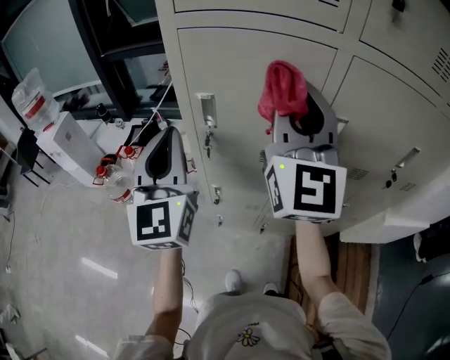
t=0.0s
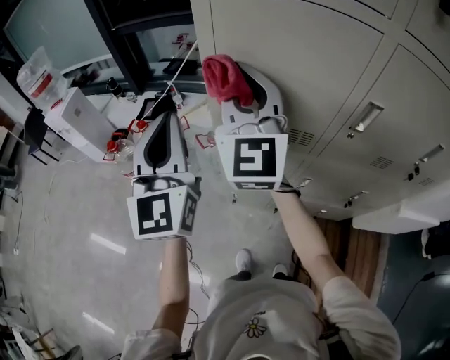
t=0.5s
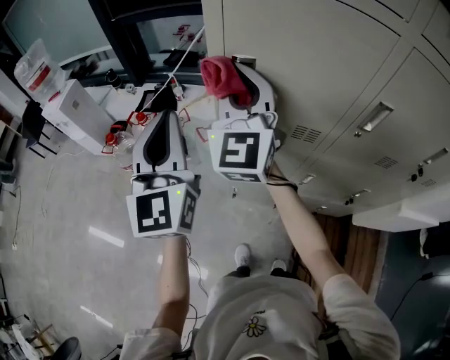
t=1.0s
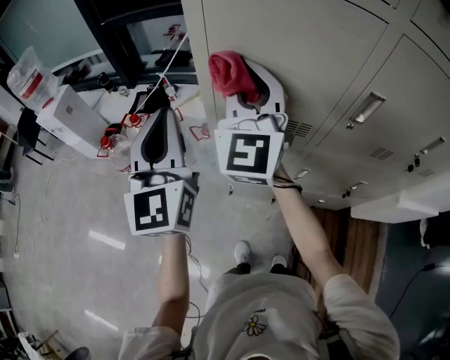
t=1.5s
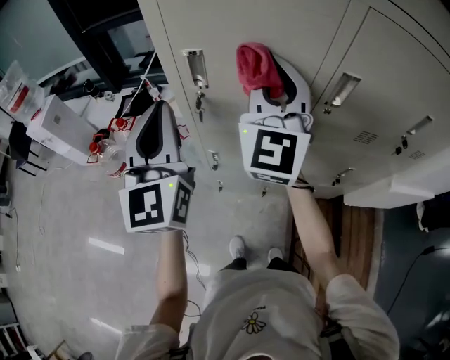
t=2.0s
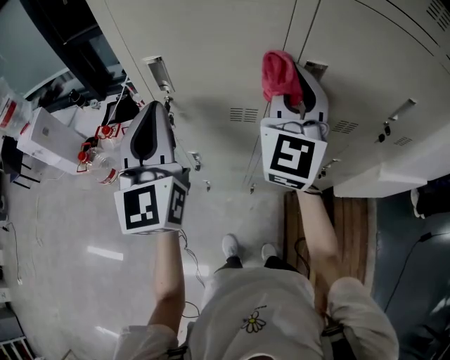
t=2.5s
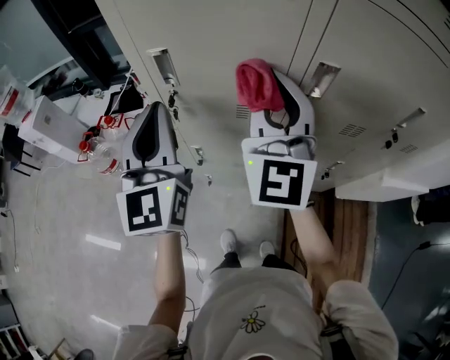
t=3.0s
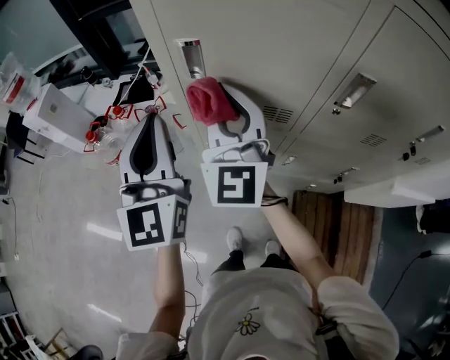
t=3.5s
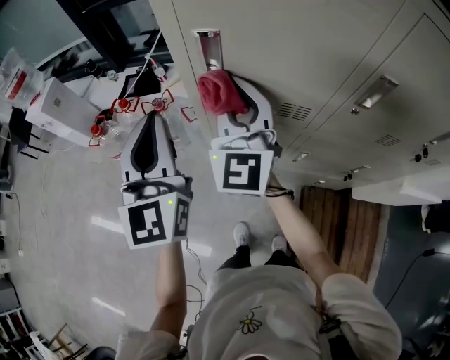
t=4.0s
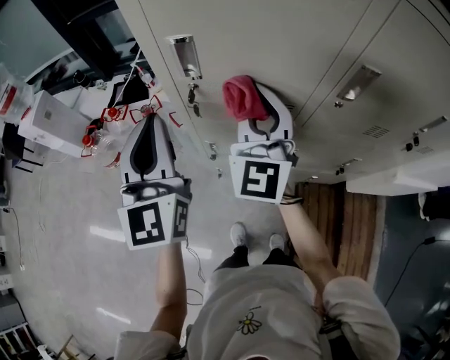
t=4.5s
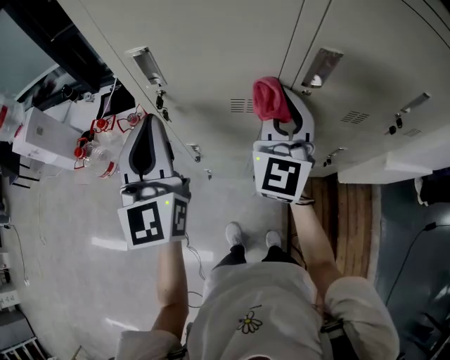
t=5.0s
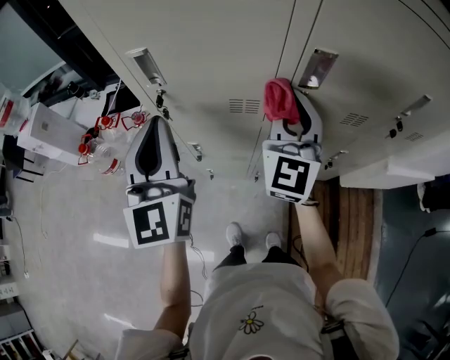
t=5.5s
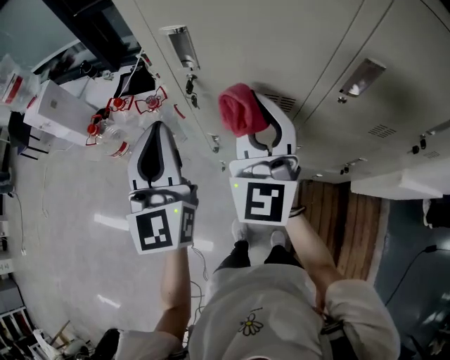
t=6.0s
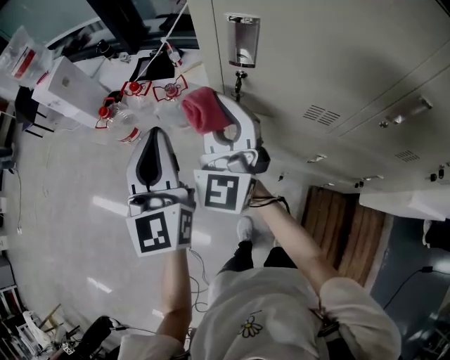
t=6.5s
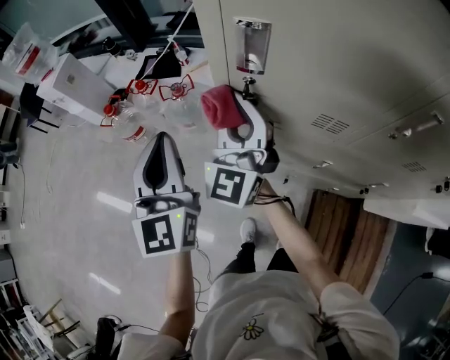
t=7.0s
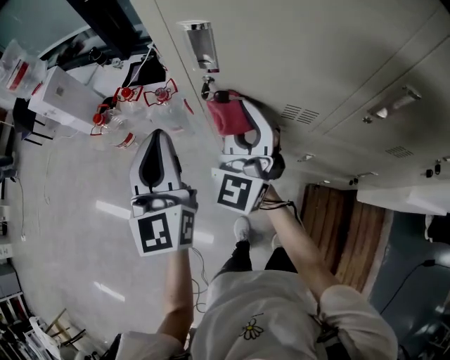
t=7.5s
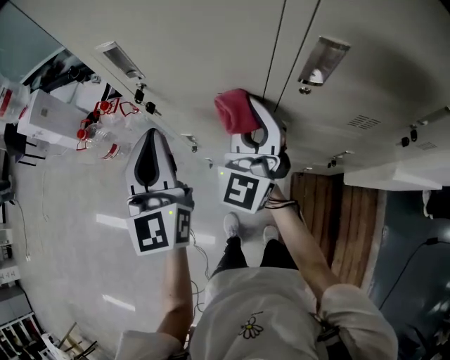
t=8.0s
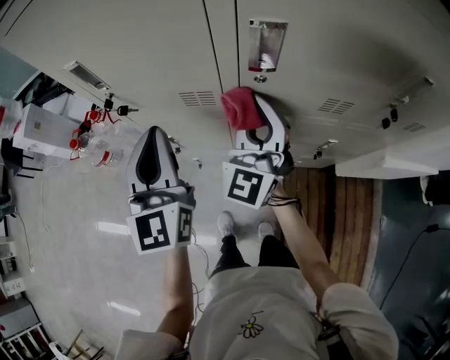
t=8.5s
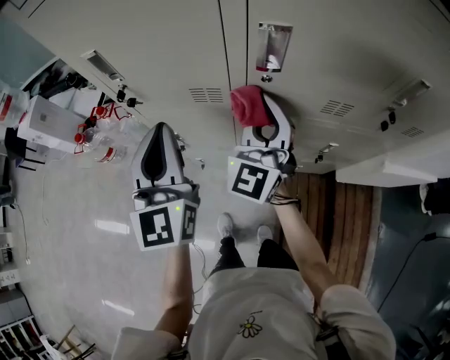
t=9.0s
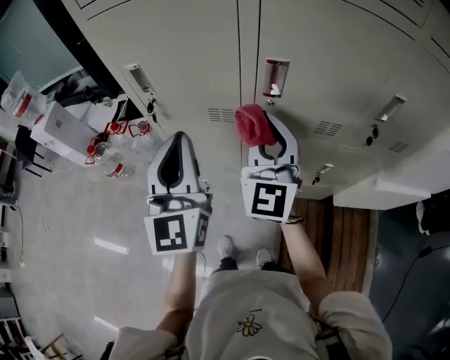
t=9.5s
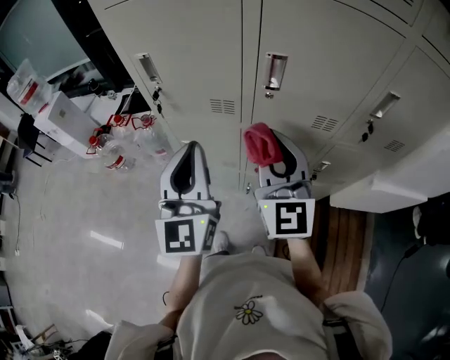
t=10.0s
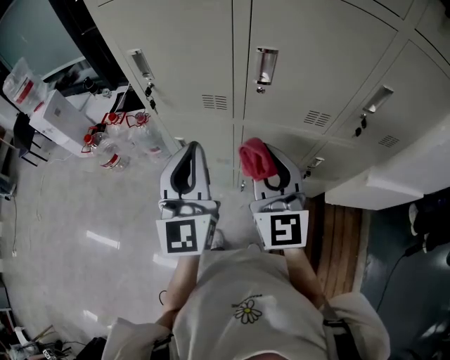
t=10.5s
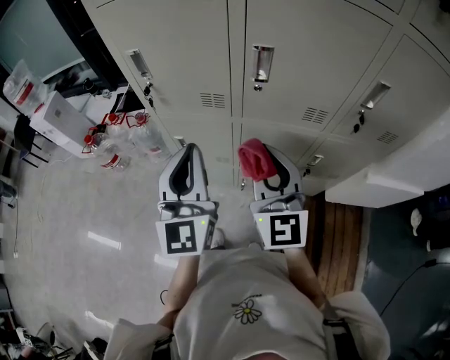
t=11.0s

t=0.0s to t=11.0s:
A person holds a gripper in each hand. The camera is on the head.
t=0.0s to t=2.0s: The right gripper shifts some 10 cm downward, and reaches about 15 cm to the left, then returns.
t=2.0s to t=3.5s: The right gripper moves downward and to the left, approximately 10 cm.
t=3.5s to t=5.5s: The right gripper moves to the right, some 20 cm, and swivels roughly 20 degrees; the left gripper goes about 5 cm to the right.
t=5.5s to t=7.5s: The left gripper heads to the left and downward, covering approximately 10 cm; the right gripper travels to the left by roughly 20 cm.
t=7.5s to t=9.0s: Both grippers travel together to the right, roughly 20 cm.
t=9.0s to t=11.0s: The grippers both shift backward by roughly 15 cm. The right gripper rotates about 30 degrees.

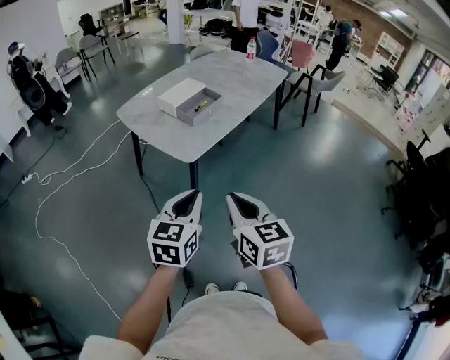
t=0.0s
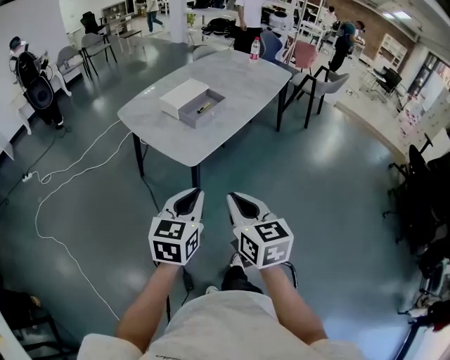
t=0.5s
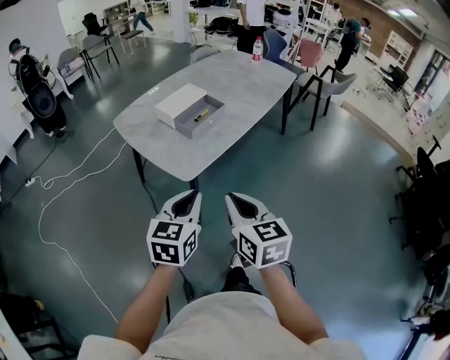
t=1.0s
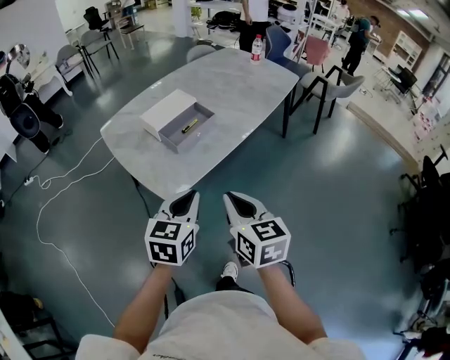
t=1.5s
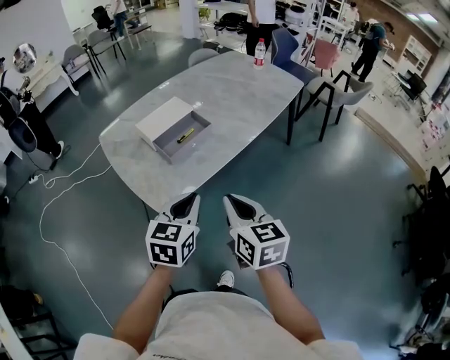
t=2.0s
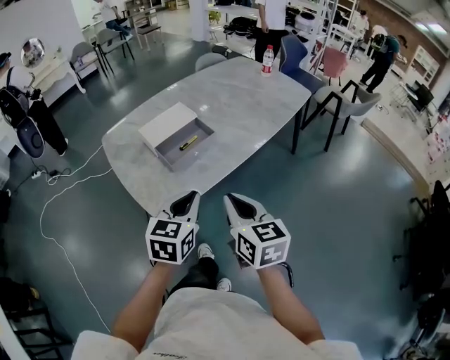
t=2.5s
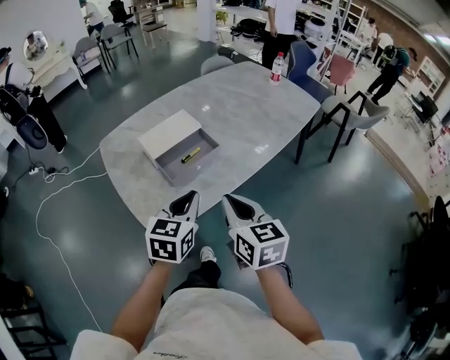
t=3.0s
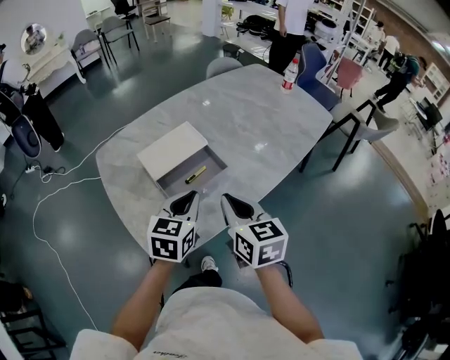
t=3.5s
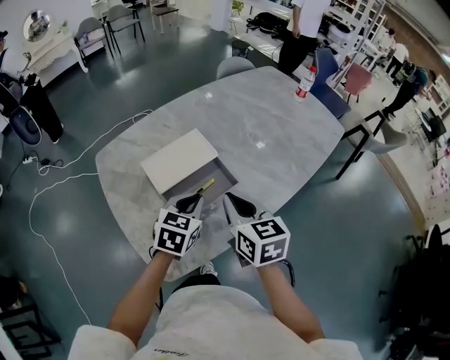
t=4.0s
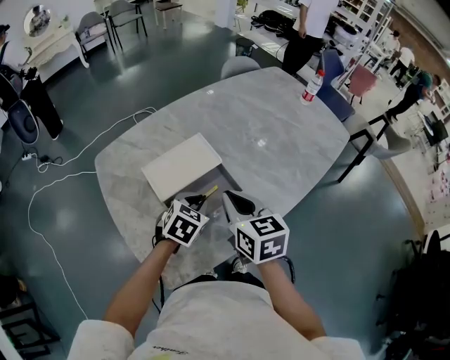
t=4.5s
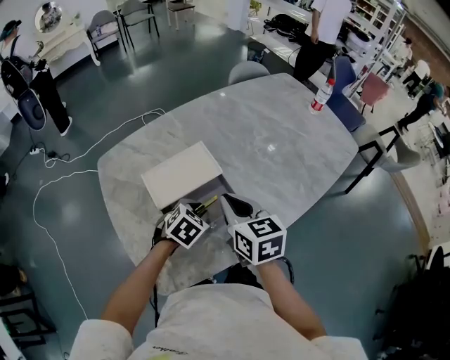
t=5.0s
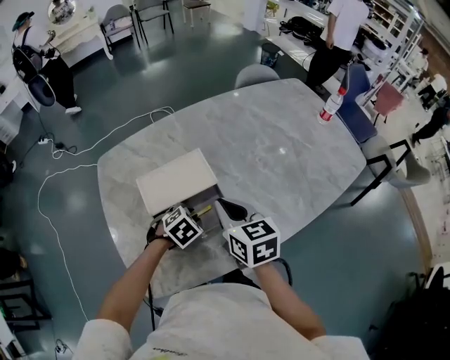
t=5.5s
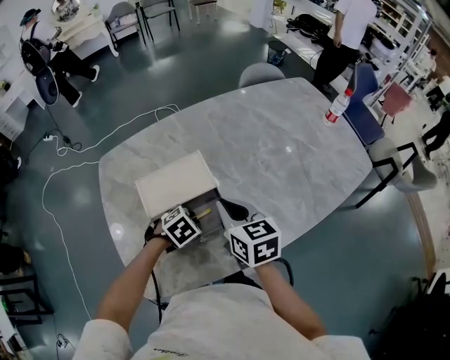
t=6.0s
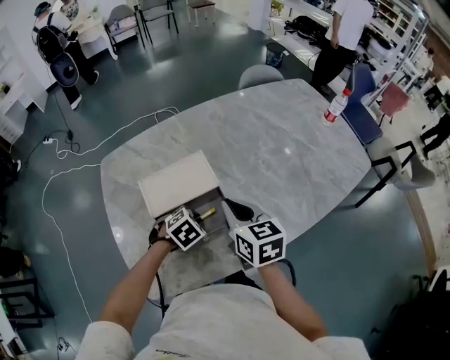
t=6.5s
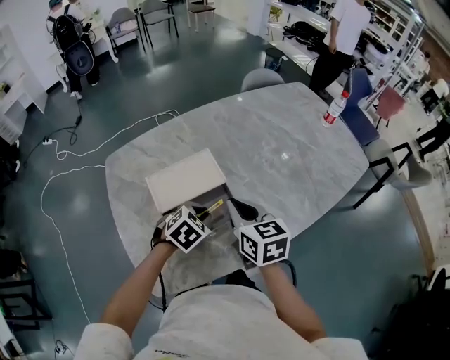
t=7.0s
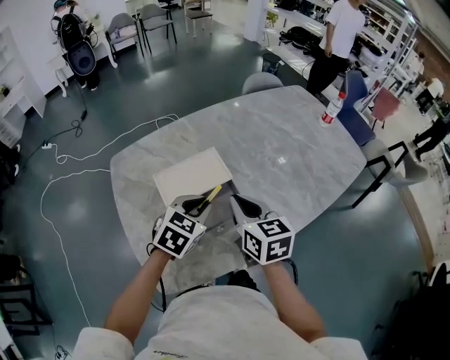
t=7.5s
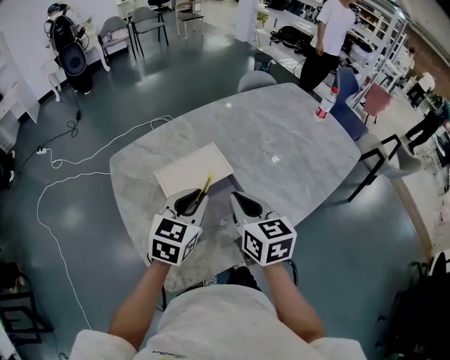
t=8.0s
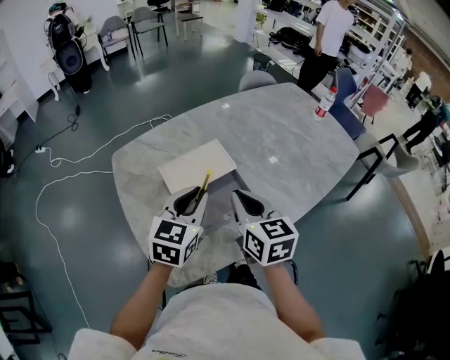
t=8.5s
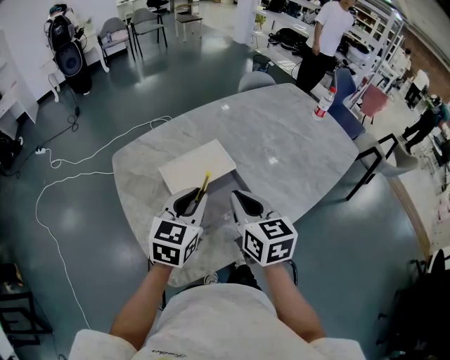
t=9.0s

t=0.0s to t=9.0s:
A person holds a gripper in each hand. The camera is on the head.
t=0.0s to t=2.0s: Both grippers travel together forward and to the right, roughly 30 cm.
t=2.0s to t=4.5s: The two grippers go about 35 cm forward. The left gripper swivels about 20 degrees.
t=4.5s to t=7.0s: The right gripper heads forward, covering roughly 5 cm; the left gripper reaches some 10 cm downward, then returns.
t=7.0s to t=9.0s: The left gripper is displaced upward and to the left by roughly 15 cm, and tilts its fingers about 40 degrees upward. The right gripper moves backward, about 5 cm.

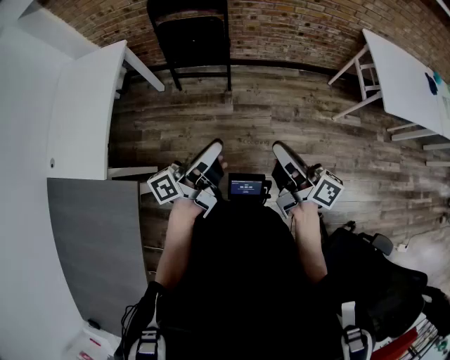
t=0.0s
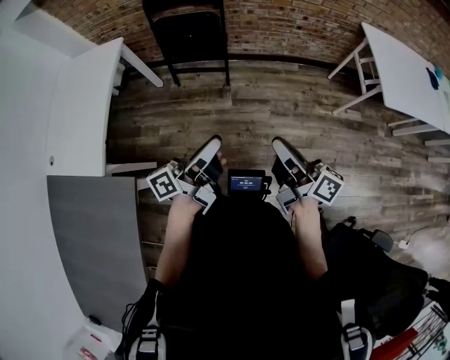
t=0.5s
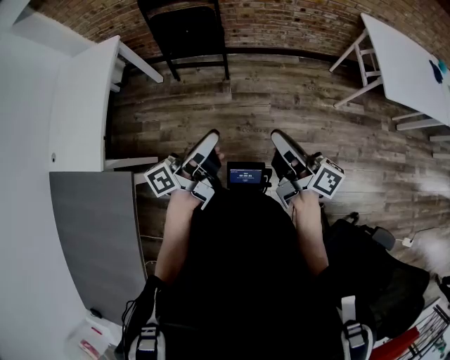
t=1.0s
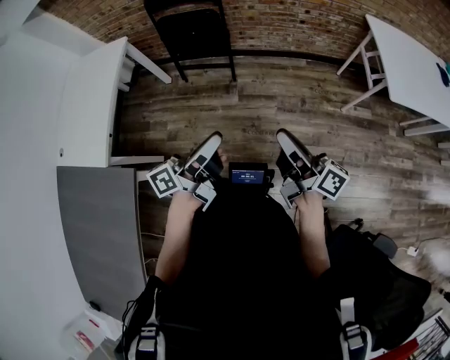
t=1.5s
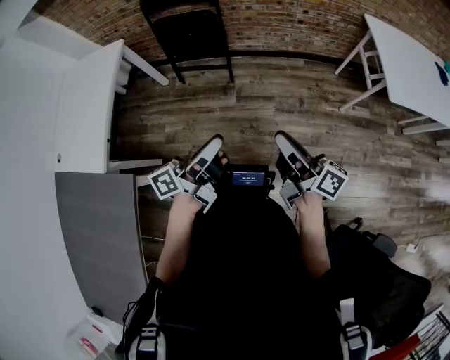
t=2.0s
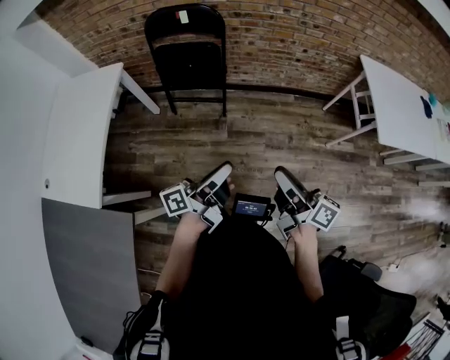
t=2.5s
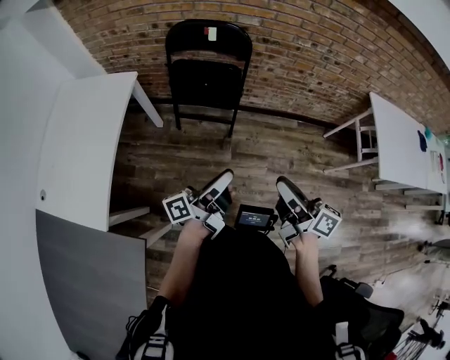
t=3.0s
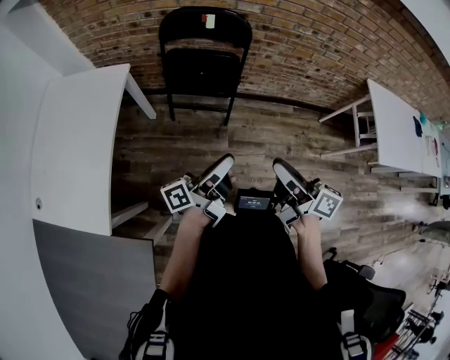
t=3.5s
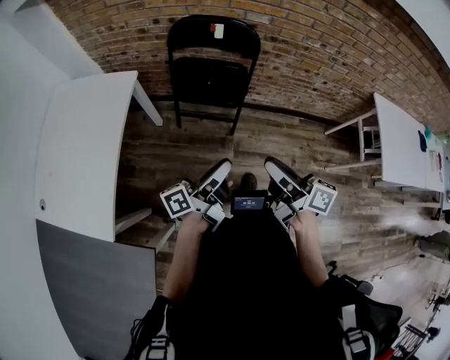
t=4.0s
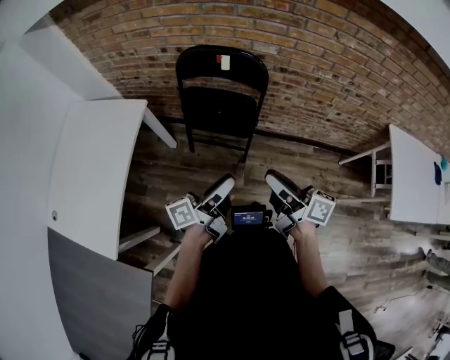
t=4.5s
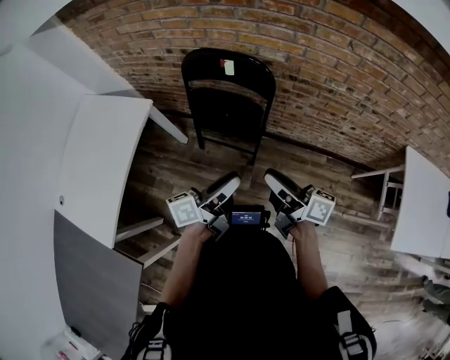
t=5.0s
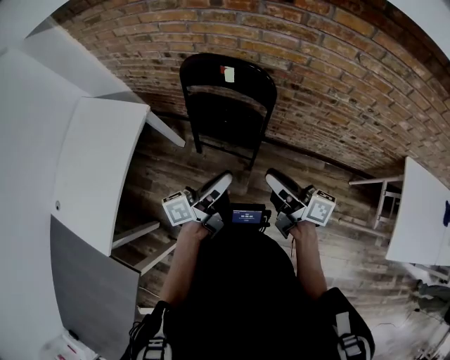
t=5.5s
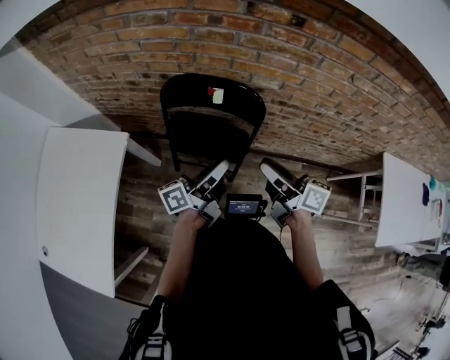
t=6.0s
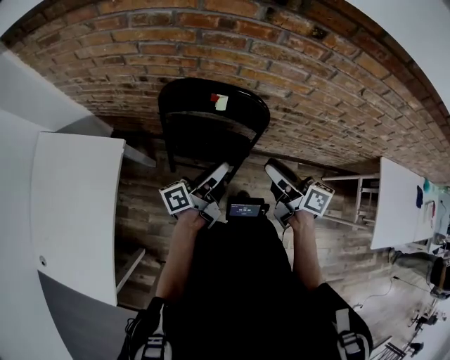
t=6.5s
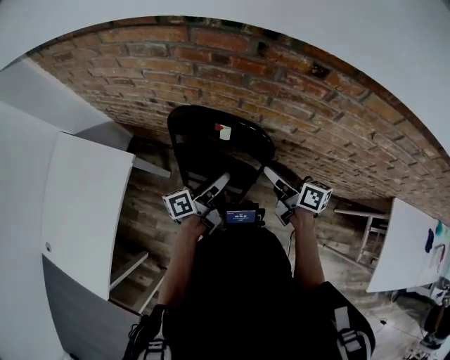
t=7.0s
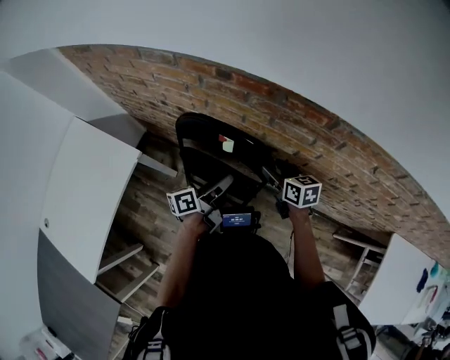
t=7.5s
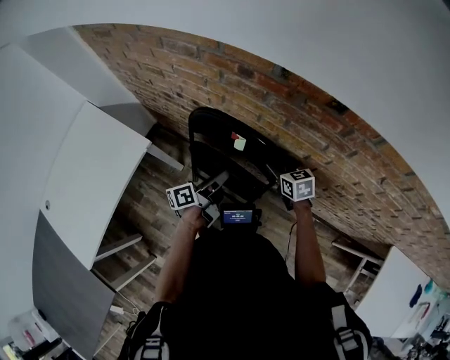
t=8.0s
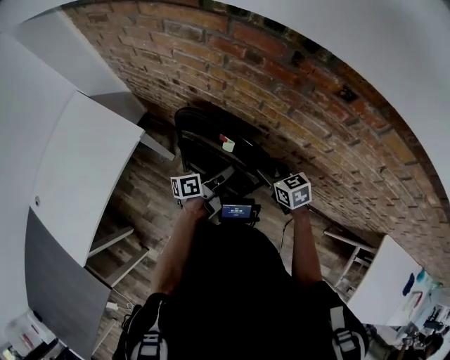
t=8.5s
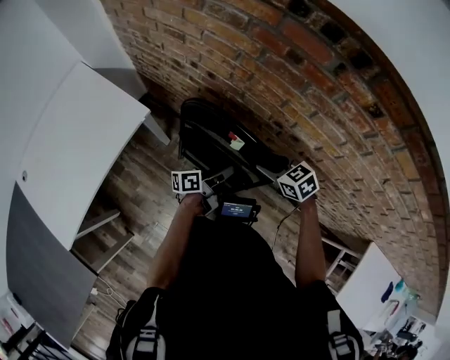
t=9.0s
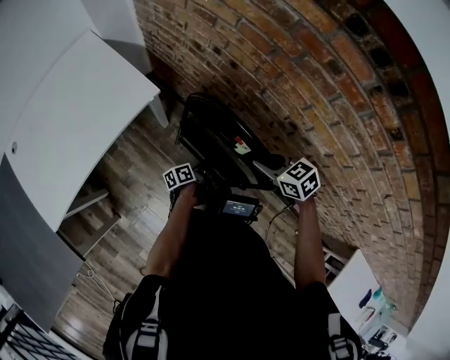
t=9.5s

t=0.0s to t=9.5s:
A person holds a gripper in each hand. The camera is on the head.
t=0.0s to t=2.0s: The two grippers go approximately 5 cm to the right.
t=2.0s to t=4.0s: The left gripper travels forward and to the left by roughly 30 cm. Meanwhile the right gripper goes about 30 cm to the left and forward.
t=4.0s to t=5.5s: Both grippers move forward and to the right, roughly 25 cm. The left gripper opens and closes again.
t=5.5s to t=7.5s: Both grippers travel together forward, about 30 cm. The right gripper tilts its fingers approximately 40 degrees downward, and opens up.
t=7.5s to t=9.5s: The right gripper shifts by roughly 20 cm, changes its angle by some 50 degrees, and closes up. Meanwhile the left gripper moves downward, some 25 cm, turns by some 30 degrees, and opens.
